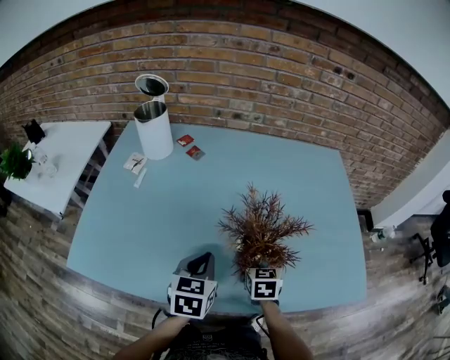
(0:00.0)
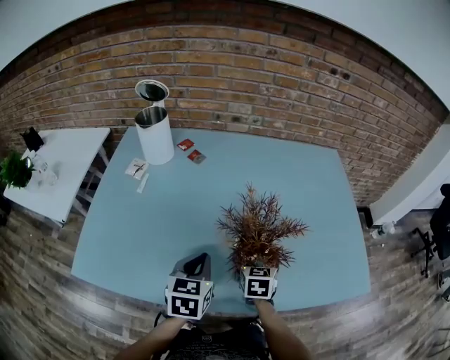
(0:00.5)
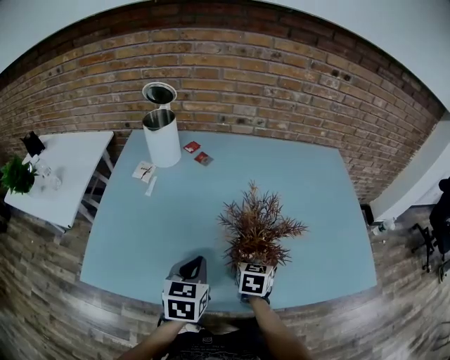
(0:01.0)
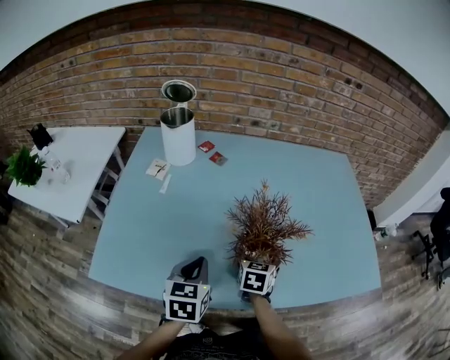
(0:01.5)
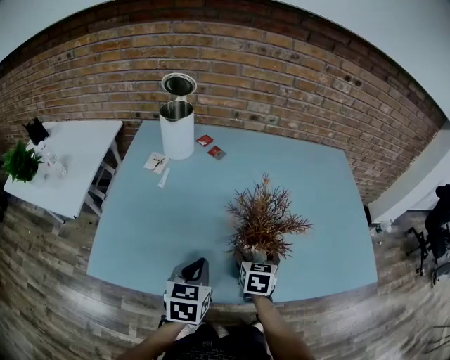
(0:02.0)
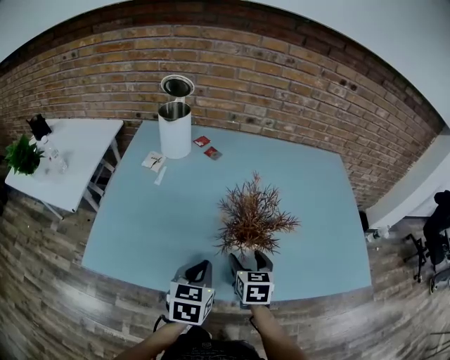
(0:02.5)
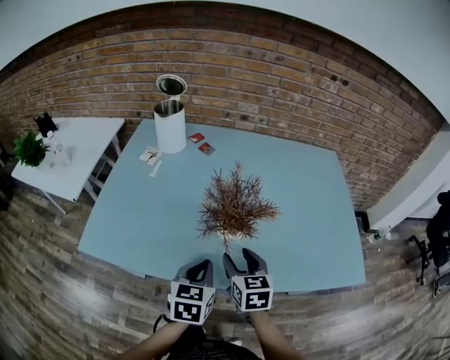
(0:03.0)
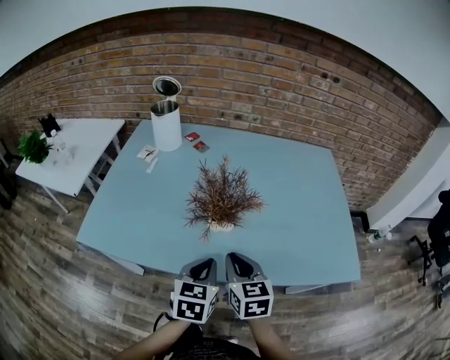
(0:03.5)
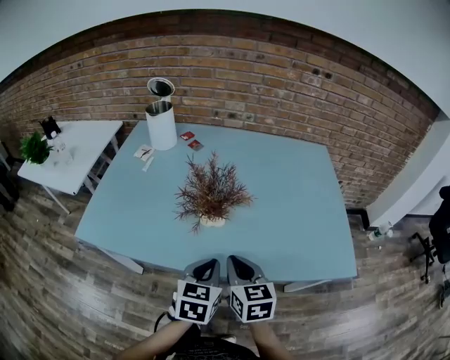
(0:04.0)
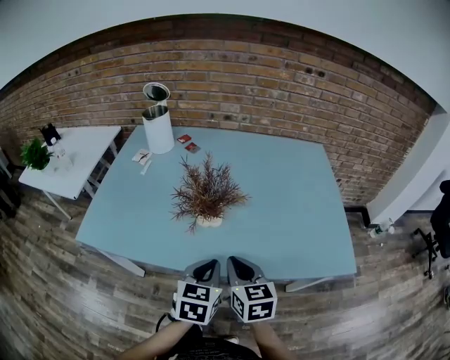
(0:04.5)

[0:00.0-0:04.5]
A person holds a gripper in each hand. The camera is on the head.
0:00.0 to 0:02.0: The left gripper is displaced to the left and backward by about 15 cm. The right gripper is displaced to the left by about 10 cm.
0:02.0 to 0:04.5: The right gripper travels backward, upward and to the right by roughly 20 cm, changes its angle by about 30 degrees, and closes; the left gripper shifts roughly 20 cm to the right and backward.

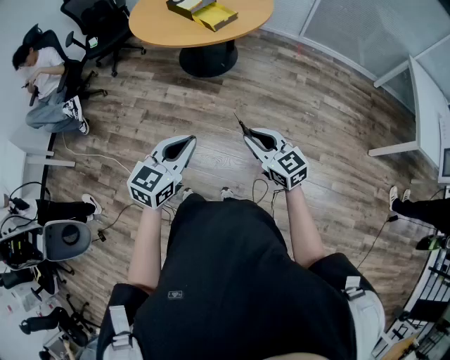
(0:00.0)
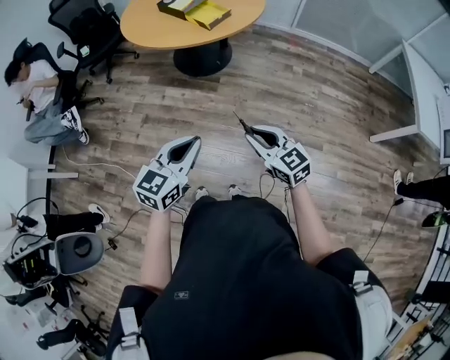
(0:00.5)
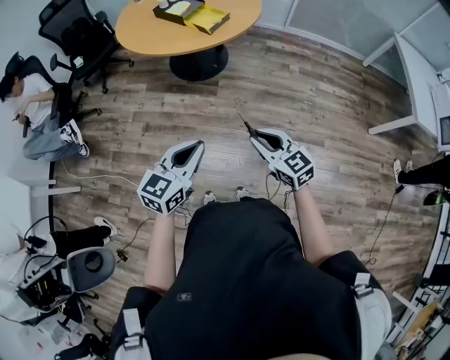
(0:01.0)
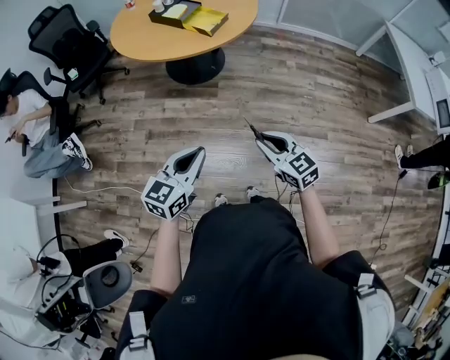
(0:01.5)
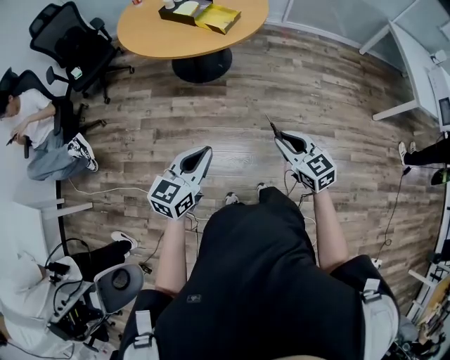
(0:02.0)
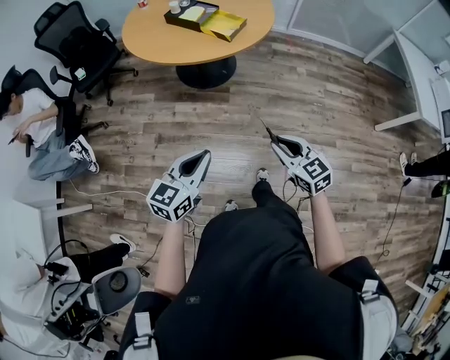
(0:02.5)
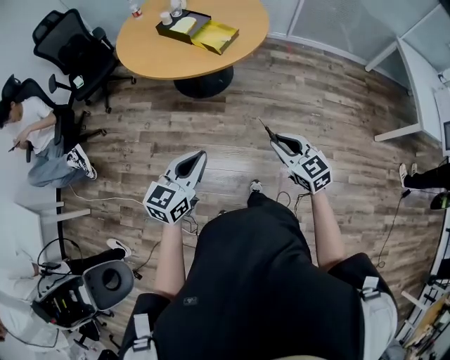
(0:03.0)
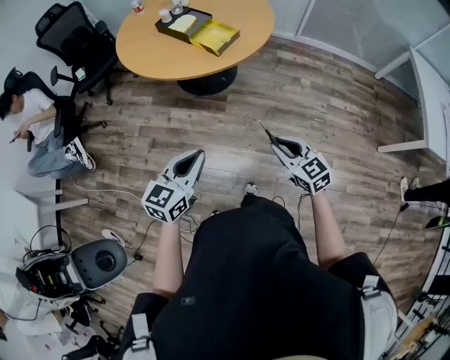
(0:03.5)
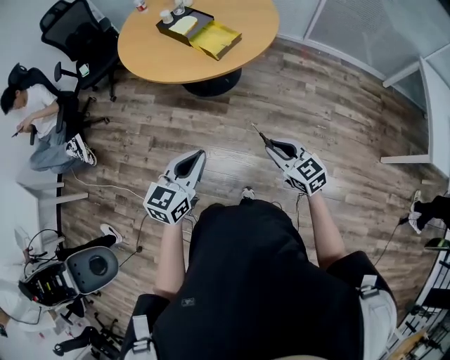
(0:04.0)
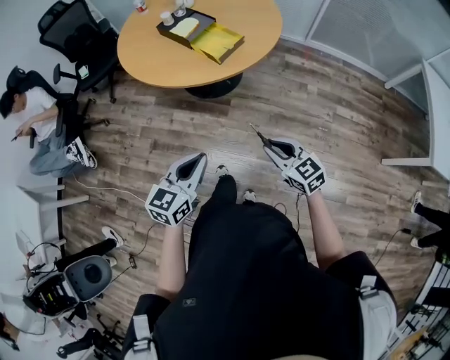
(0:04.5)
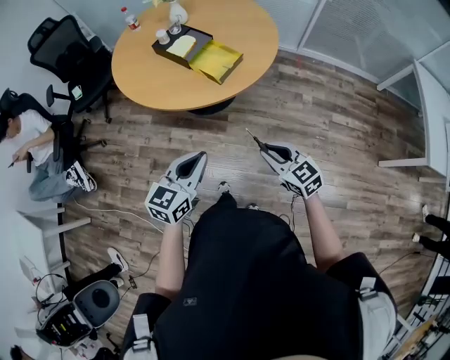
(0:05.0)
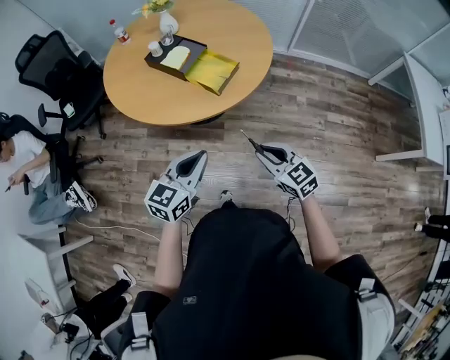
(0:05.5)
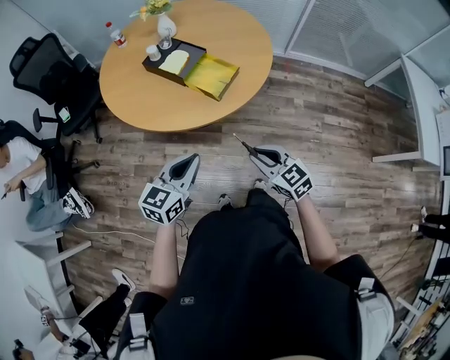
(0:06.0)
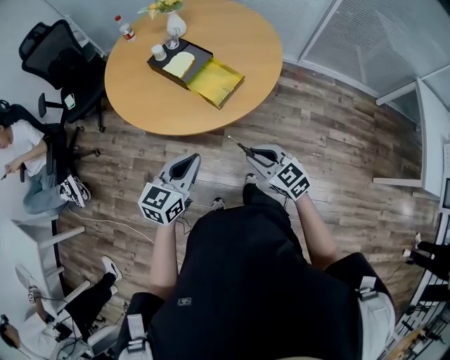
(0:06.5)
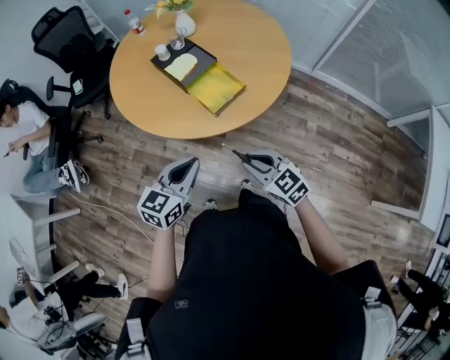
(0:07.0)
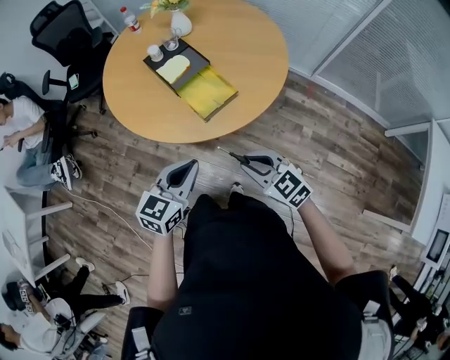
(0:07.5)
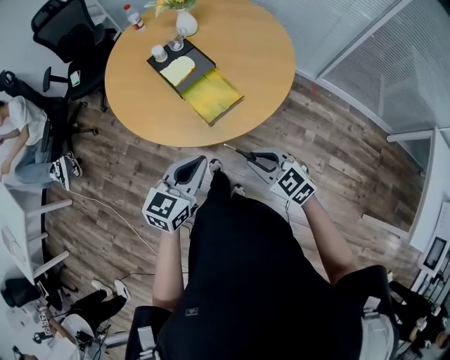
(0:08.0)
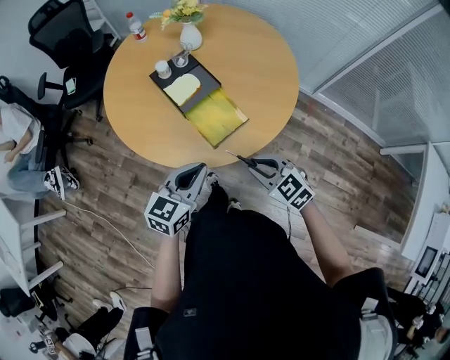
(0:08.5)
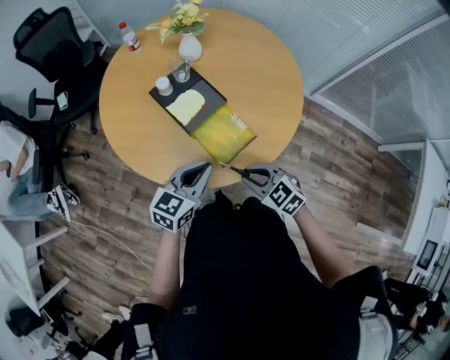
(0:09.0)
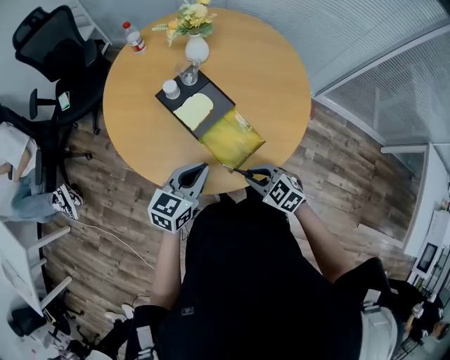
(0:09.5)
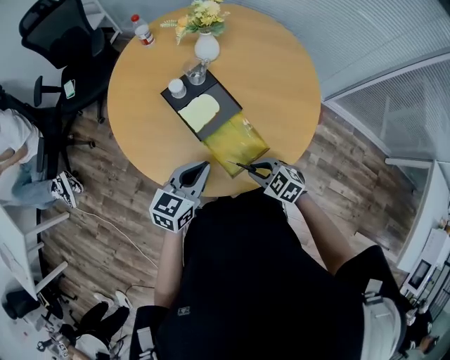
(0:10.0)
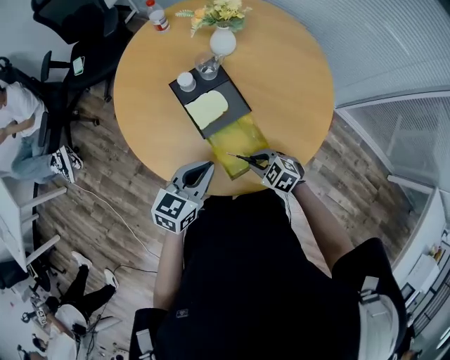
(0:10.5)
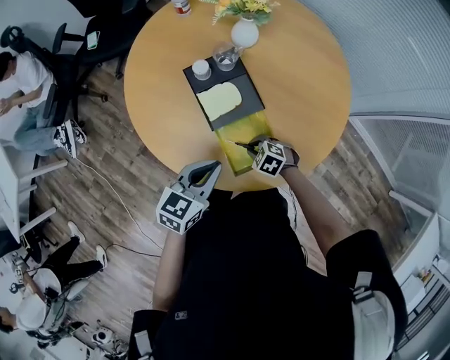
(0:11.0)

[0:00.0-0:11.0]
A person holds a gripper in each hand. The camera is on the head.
0:00.0 to 0:02.0: Both grippers move to the left, about 20 cm.
0:02.0 to 0:03.5: The two grippers go approximately 20 cm forward and to the right.
0:03.5 to 0:05.5: The grippers both shift forward by roughly 20 cm.
0:05.5 to 0:07.5: The right gripper is displaced forward and to the right by roughly 15 cm, and swivels some 30 degrees; the left gripper moves to the right and forward, approximately 15 cm.
0:07.5 to 0:09.0: Both grippers travel together forward, approximately 20 cm.
0:09.0 to 0:11.0: The left gripper moves approximately 5 cm. Meanwhile the right gripper is displaced downward by approximately 20 cm, and swivels roughly 40 degrees.

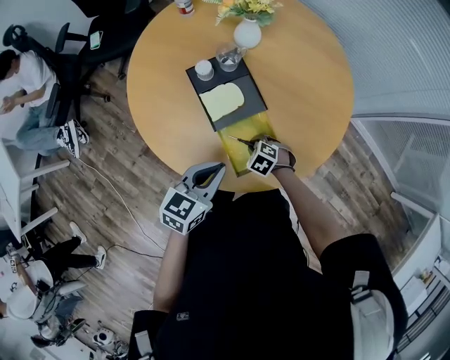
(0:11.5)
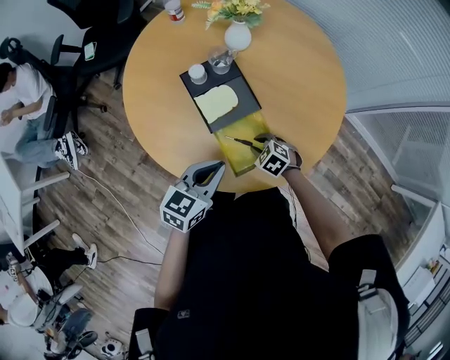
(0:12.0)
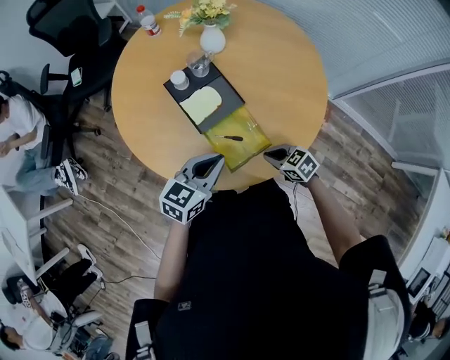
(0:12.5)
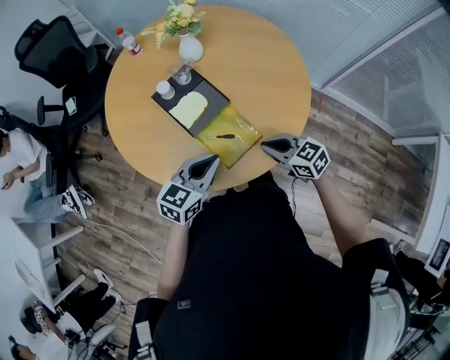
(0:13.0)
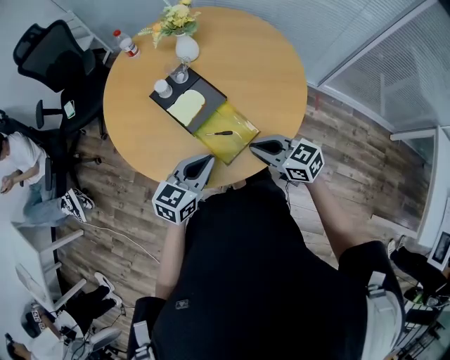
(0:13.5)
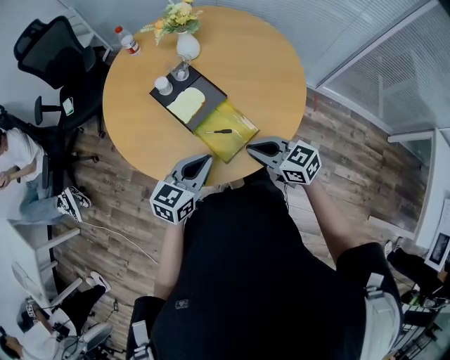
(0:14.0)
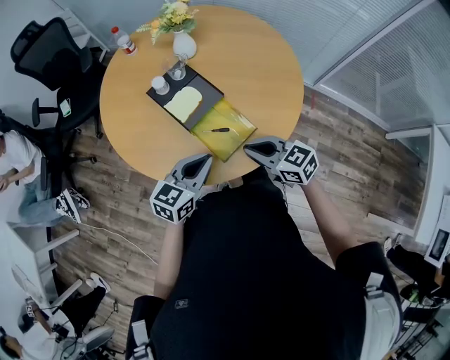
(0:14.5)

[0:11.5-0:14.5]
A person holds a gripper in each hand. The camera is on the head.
0:11.5 to 0:13.0: The left gripper shifts by about 5 cm, while the right gripper goes approximately 20 cm upward and to the right, and tips its fingers upward by some 40 degrees.
0:13.0 to 0:14.5: The right gripper moves to the left, about 5 cm.

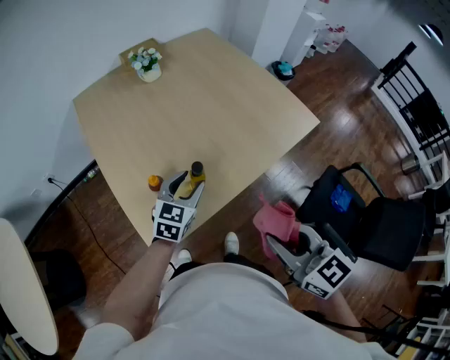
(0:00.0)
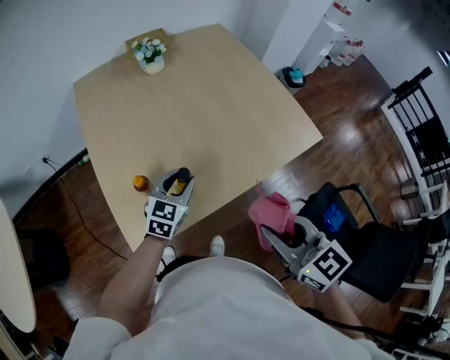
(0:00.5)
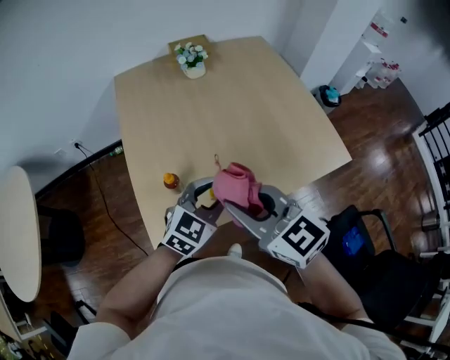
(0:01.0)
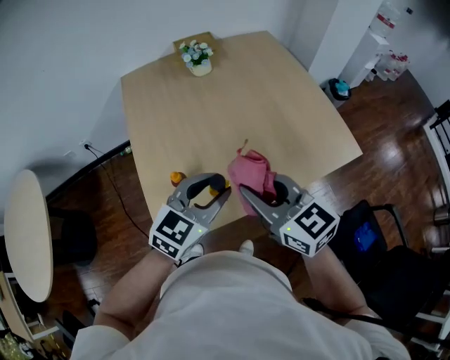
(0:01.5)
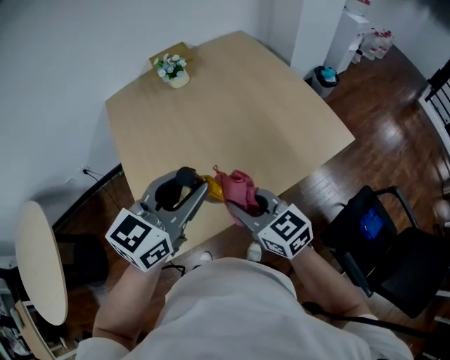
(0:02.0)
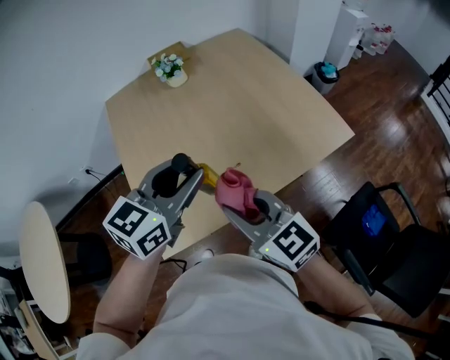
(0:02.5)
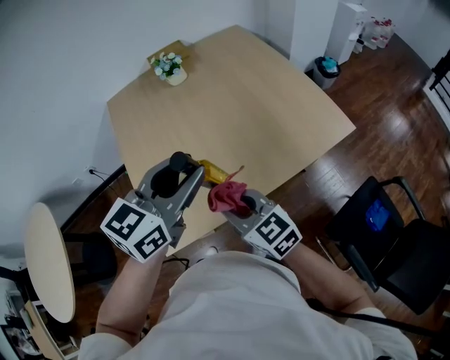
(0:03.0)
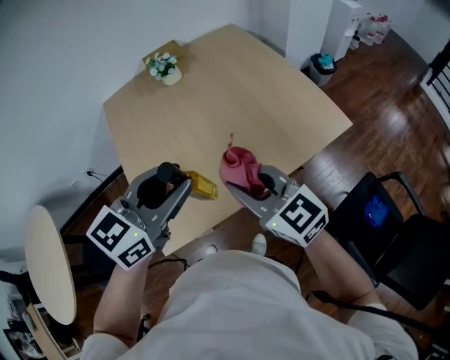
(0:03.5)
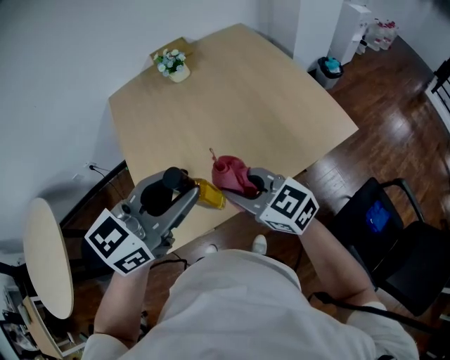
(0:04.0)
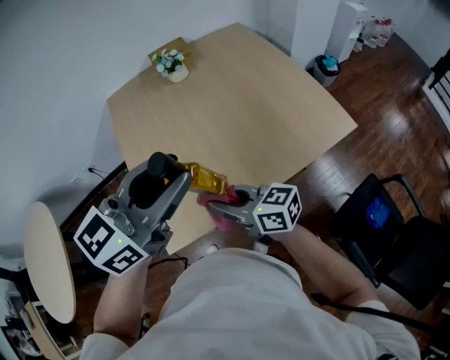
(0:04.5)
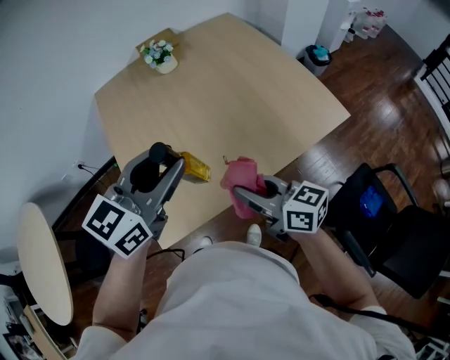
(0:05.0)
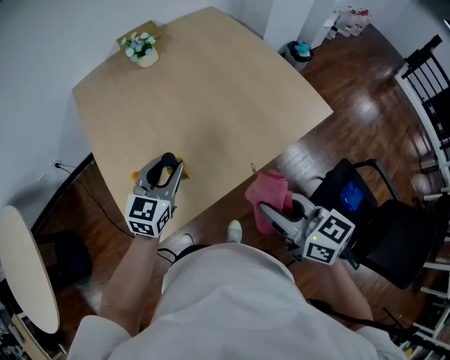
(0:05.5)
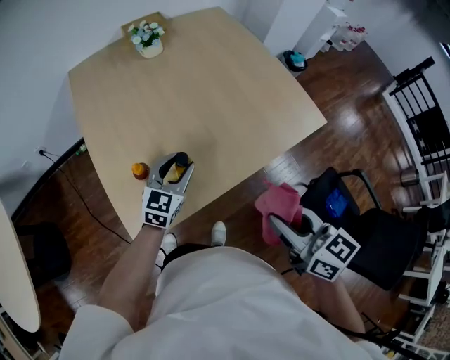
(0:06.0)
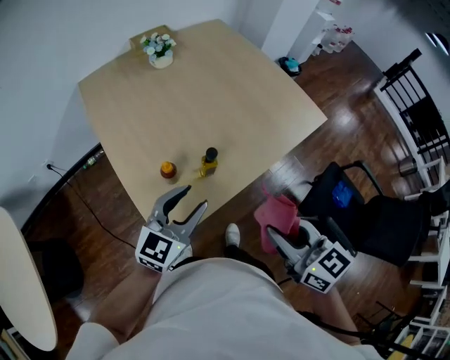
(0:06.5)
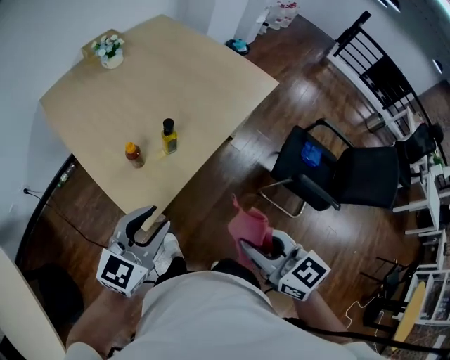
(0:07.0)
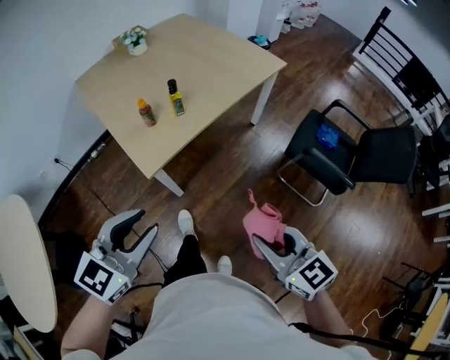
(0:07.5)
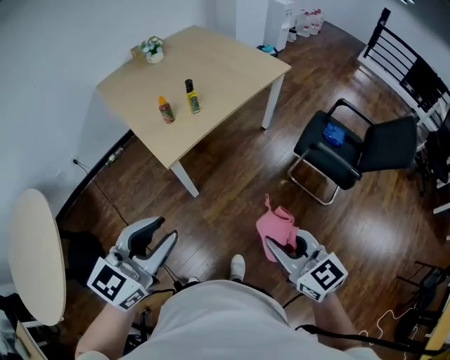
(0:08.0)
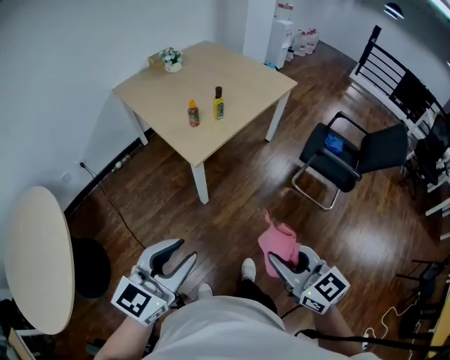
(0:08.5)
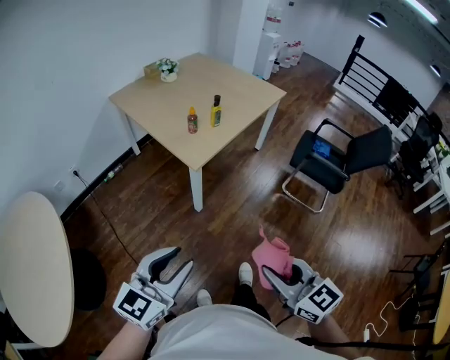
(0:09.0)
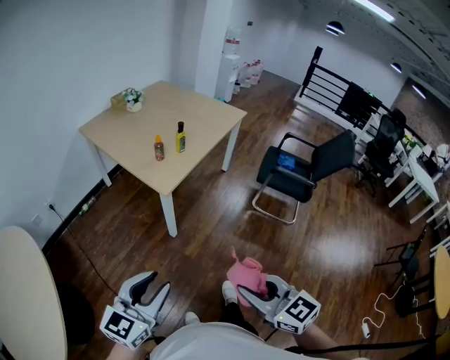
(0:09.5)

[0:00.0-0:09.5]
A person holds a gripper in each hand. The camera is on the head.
0:00.0 to 0:02.0: The left gripper moves upward, roughly 20 cm. The right gripper goes approximately 20 cm forward and downward.
0:02.0 to 0:04.0: The right gripper goes up and down, approximately 10 cm each way, reversing 3 times.
0:04.0 to 0:05.5: The left gripper is displaced downward and forward by about 20 cm. Meanwhile the right gripper heads to the right and backward, covering roughly 15 cm, and rotates approximately 30 degrees.
0:05.5 to 0:07.5: The two grippers travel together, backward, approximately 50 cm. The left gripper changes its angle by some 20 degrees, while the right gripper changes its angle by roughly 20 degrees.
0:07.5 to 0:09.5: The grippers both shift backward and to the left by about 35 cm.
